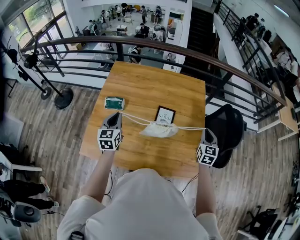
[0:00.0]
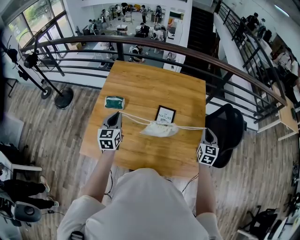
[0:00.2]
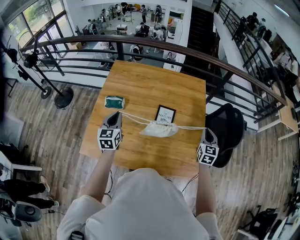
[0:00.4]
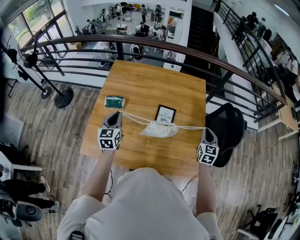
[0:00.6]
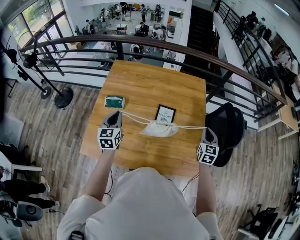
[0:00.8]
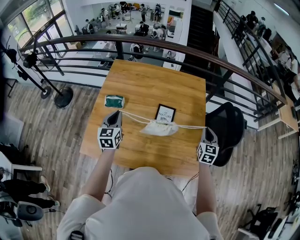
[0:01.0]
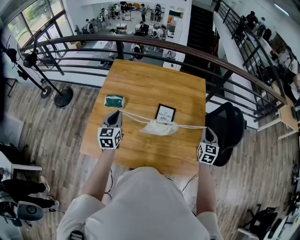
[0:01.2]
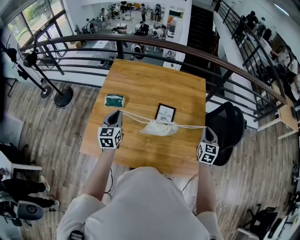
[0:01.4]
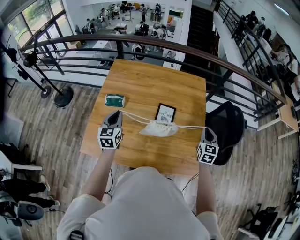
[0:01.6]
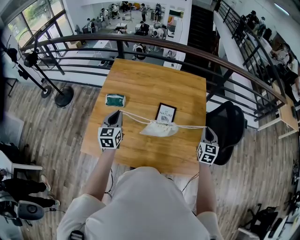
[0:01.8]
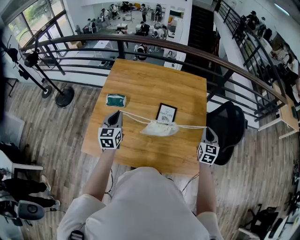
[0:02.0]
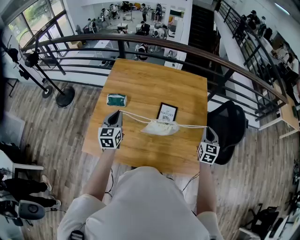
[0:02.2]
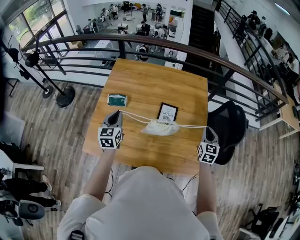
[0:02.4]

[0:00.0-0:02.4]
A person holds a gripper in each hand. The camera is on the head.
0:00.0 to 0:01.2: Both grippers stay put.
0:01.2 to 0:02.4: The grippers stay close to where they were, moving slightly.

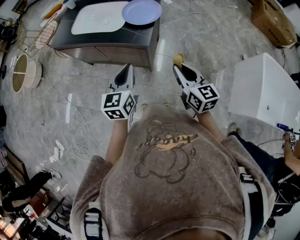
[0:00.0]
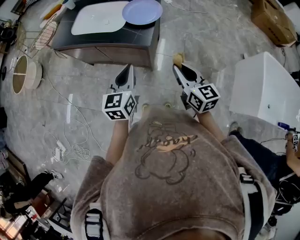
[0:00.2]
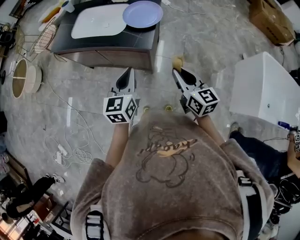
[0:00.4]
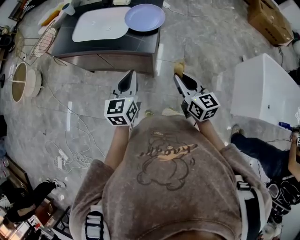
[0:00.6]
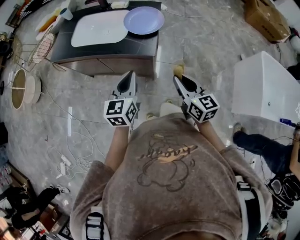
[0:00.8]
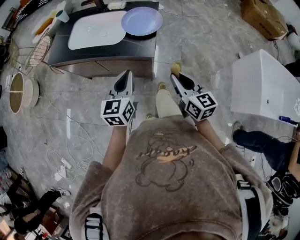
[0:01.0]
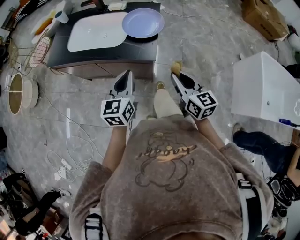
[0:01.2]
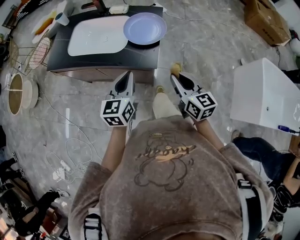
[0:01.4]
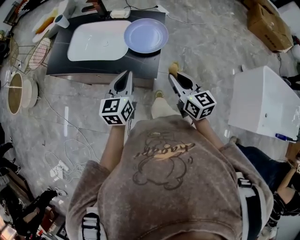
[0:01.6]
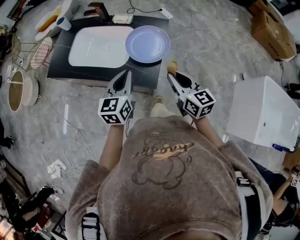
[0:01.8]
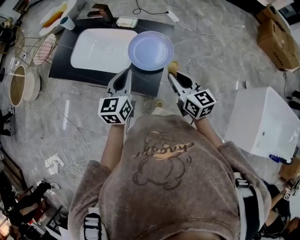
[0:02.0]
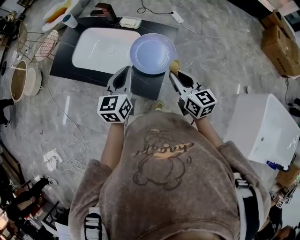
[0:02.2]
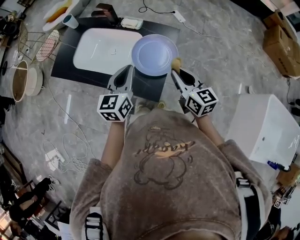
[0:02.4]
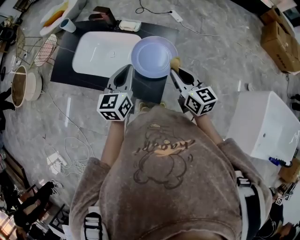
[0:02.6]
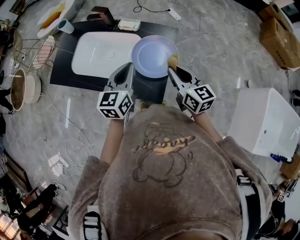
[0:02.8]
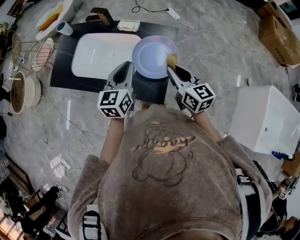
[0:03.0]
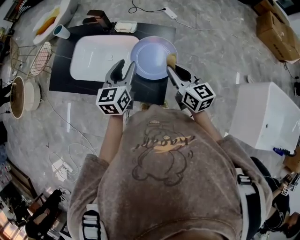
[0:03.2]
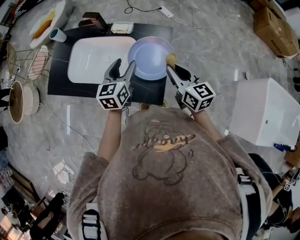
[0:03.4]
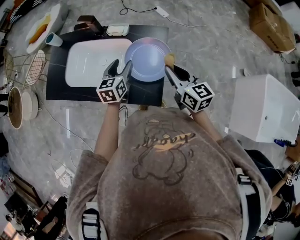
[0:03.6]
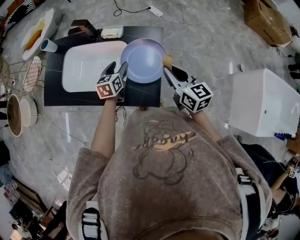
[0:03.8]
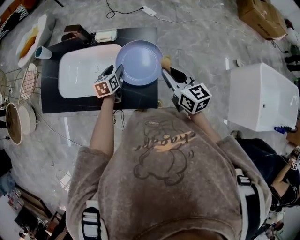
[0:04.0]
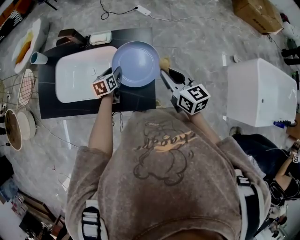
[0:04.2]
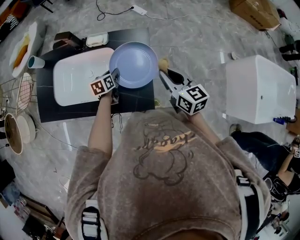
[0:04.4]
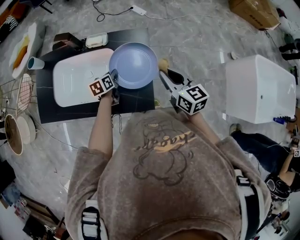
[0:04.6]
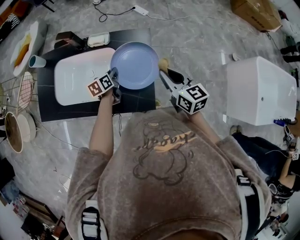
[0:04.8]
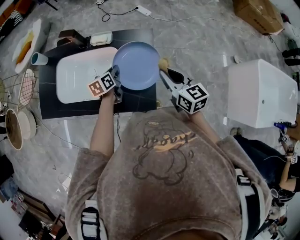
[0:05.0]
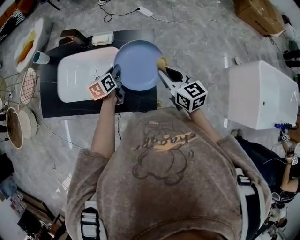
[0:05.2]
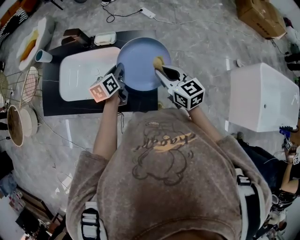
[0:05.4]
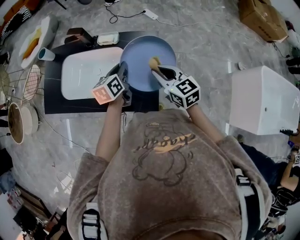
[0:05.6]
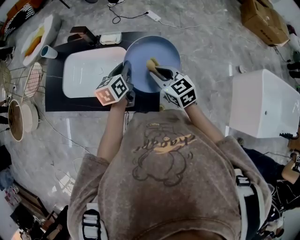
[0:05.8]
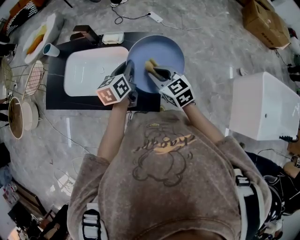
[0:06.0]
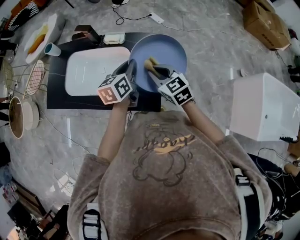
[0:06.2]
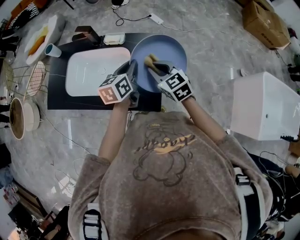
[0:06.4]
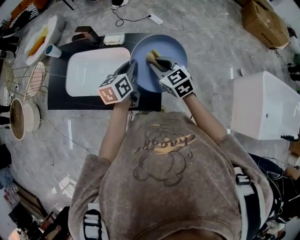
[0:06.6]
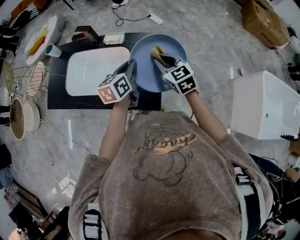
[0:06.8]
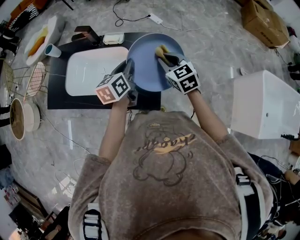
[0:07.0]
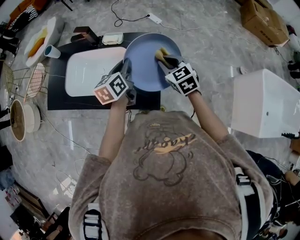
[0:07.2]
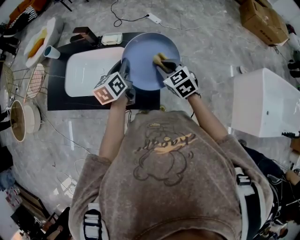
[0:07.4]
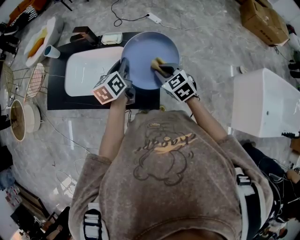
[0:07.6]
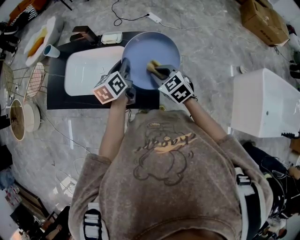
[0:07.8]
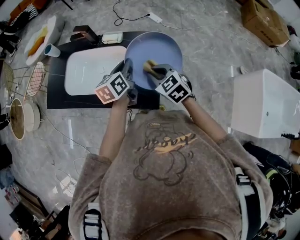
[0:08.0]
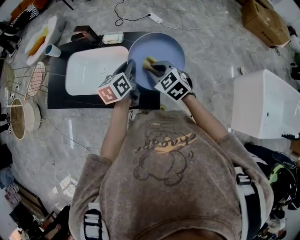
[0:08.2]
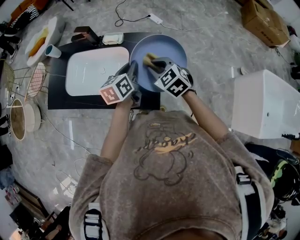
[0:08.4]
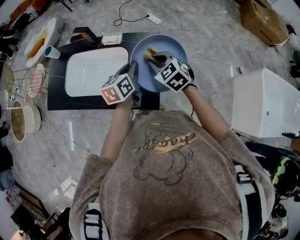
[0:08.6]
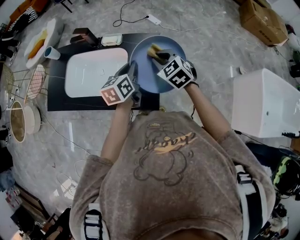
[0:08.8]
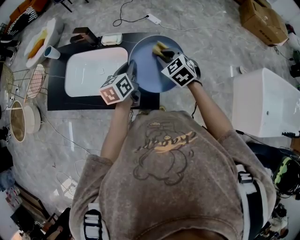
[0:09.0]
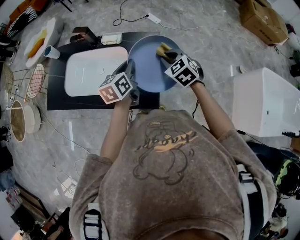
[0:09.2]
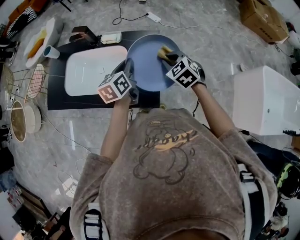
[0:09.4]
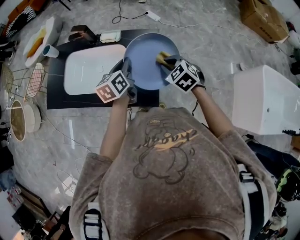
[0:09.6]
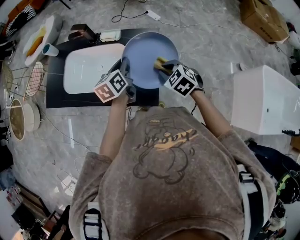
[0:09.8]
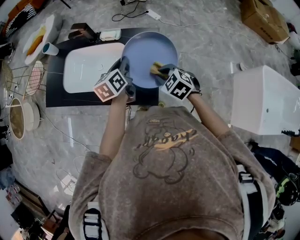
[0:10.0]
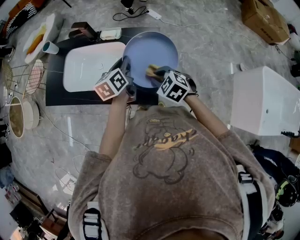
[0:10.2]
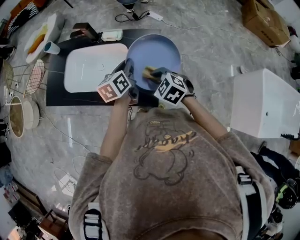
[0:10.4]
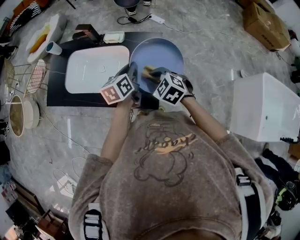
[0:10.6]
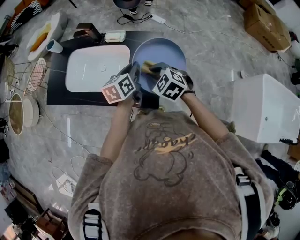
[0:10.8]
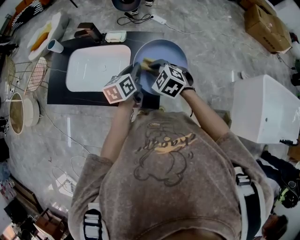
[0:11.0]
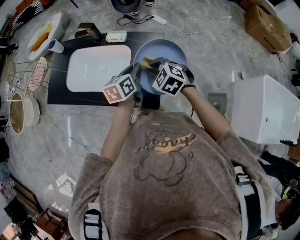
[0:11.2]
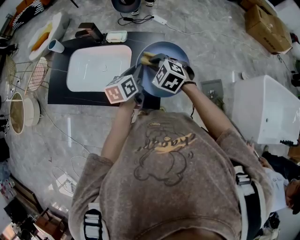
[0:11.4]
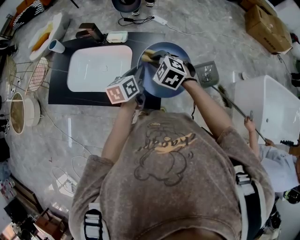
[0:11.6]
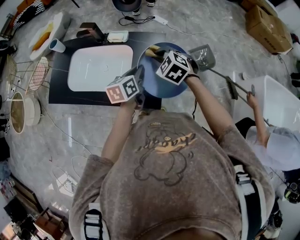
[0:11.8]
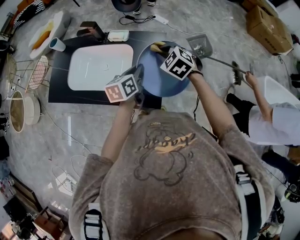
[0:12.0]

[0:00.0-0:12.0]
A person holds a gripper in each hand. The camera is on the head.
0:00.0 to 0:01.6: The grippers both shift forward by approximately 20 cm.
0:01.6 to 0:03.0: Both grippers move forward, approximately 20 cm.
0:03.0 to 0:04.4: The right gripper goes about 5 cm to the right, while the left gripper is displaced downward and forward by about 25 cm, turns by roughly 30 degrees, and opens its fingers.
0:04.4 to 0:06.0: The right gripper goes roughly 10 cm to the left, and changes its angle by some 30 degrees, while the left gripper travels upward by about 20 cm, swivels about 20 degrees, and closes up.
0:07.6 to 0:09.0: The right gripper goes roughly 5 cm forward.
0:09.0 to 0:10.4: The right gripper travels backward, to the left and downward by approximately 15 cm.
0:10.4 to 0:12.0: The right gripper moves forward, about 10 cm.

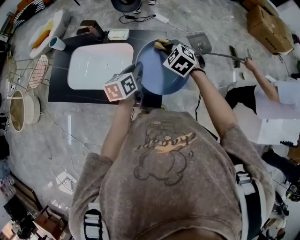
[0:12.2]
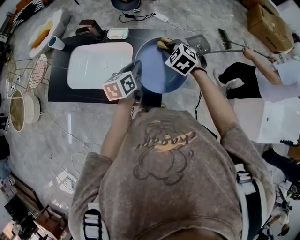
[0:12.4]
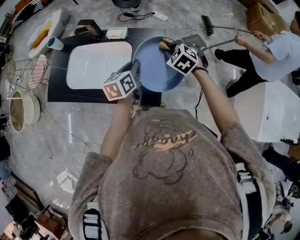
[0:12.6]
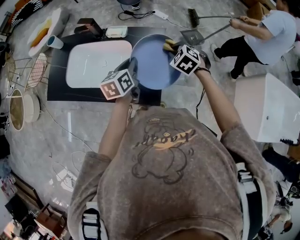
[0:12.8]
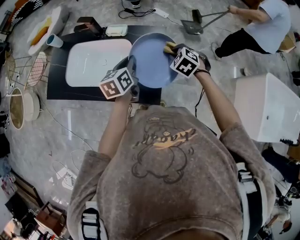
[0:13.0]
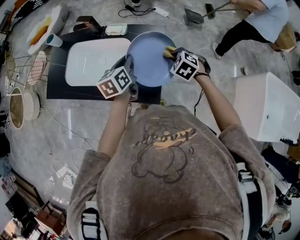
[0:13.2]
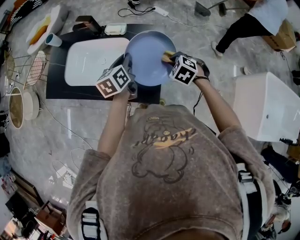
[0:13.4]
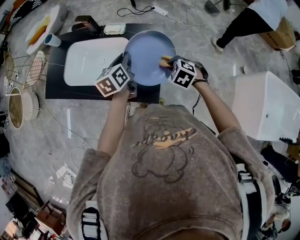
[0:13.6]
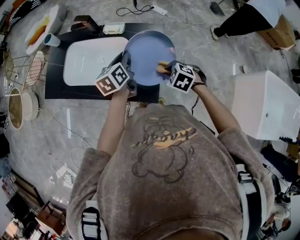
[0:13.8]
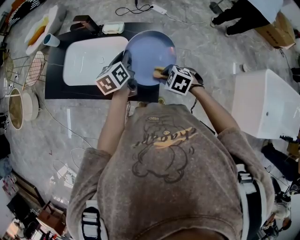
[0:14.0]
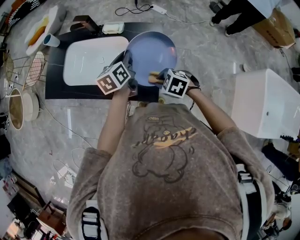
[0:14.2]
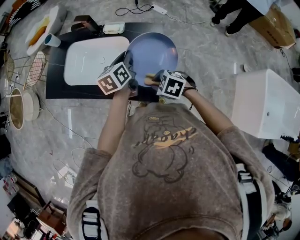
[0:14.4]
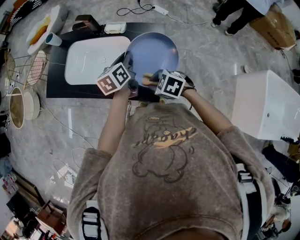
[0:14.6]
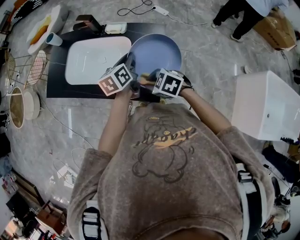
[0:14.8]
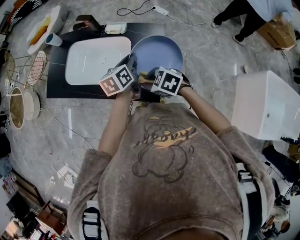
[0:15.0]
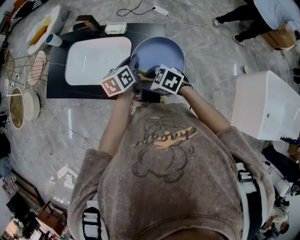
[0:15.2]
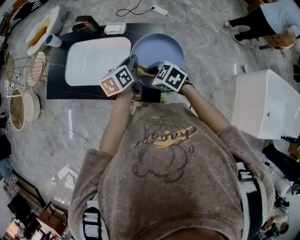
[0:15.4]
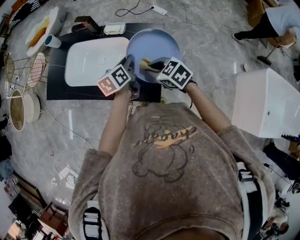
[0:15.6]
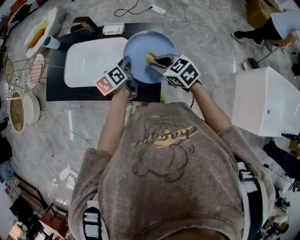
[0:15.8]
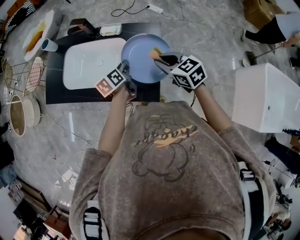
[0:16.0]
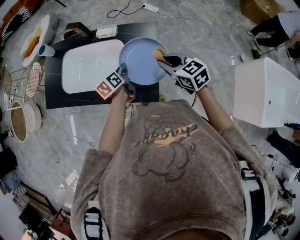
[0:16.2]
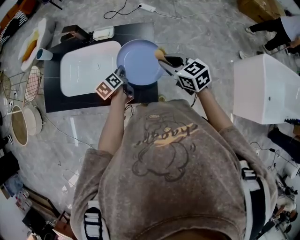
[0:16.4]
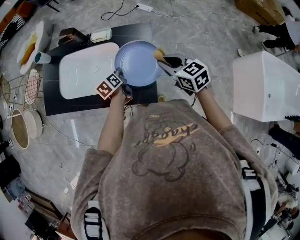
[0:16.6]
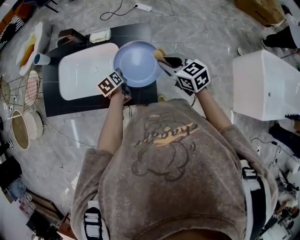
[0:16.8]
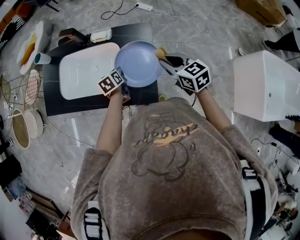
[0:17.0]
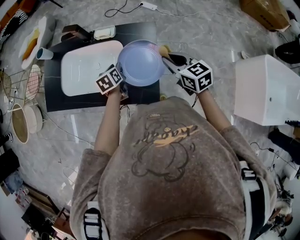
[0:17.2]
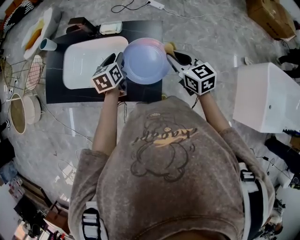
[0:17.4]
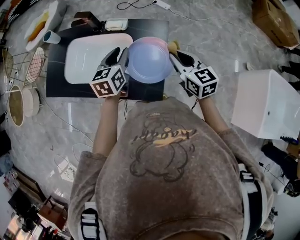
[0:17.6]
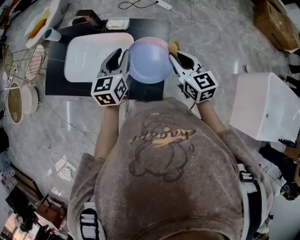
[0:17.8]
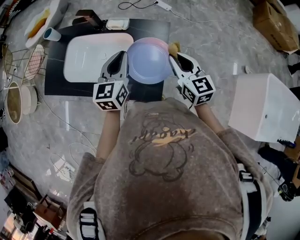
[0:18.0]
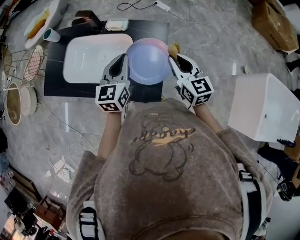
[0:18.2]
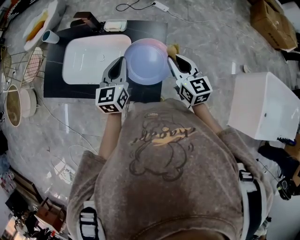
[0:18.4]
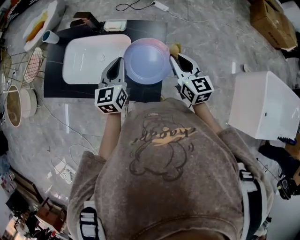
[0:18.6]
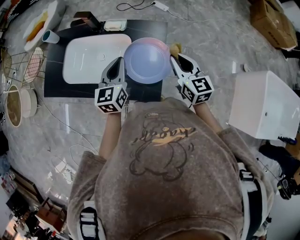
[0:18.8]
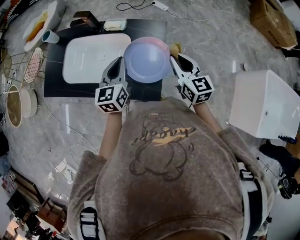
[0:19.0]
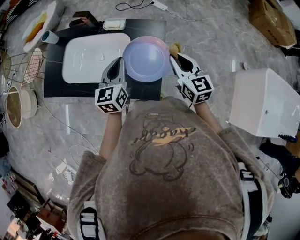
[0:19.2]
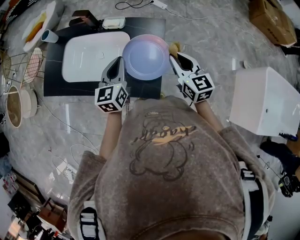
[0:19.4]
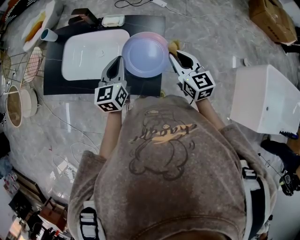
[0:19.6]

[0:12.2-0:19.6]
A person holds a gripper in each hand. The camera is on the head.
0:12.2 to 0:13.6: The right gripper moves backward and downward, about 10 cm.
0:13.6 to 0:15.2: The right gripper travels to the left by roughly 15 cm, and changes its angle by about 30 degrees.
0:15.2 to 0:16.6: The right gripper travels to the right by approximately 15 cm, and changes its angle by approximately 40 degrees. Meanwhile the left gripper goes approximately 10 cm downward.
0:16.6 to 0:18.2: The left gripper moves upward, about 20 cm, changes its angle by about 40 degrees, and opens, then closes again.
0:18.2 to 0:19.6: The grippers stay close to where they were, moving slightly.

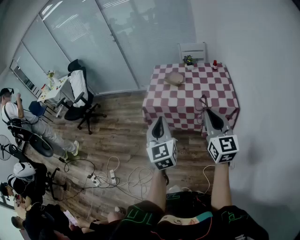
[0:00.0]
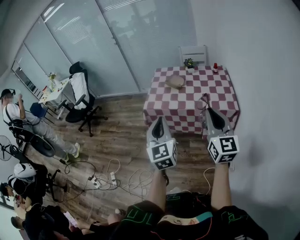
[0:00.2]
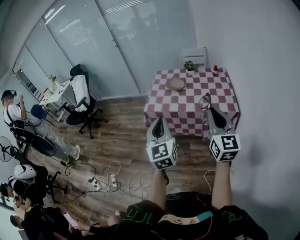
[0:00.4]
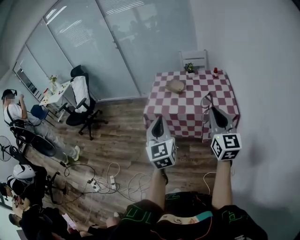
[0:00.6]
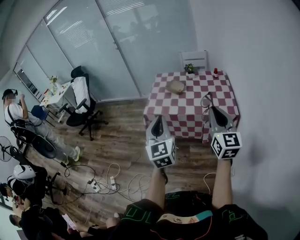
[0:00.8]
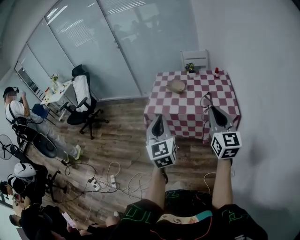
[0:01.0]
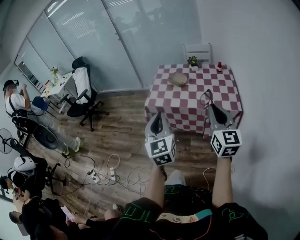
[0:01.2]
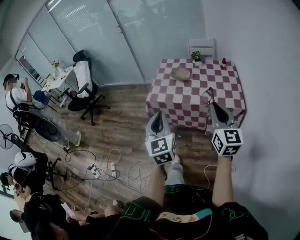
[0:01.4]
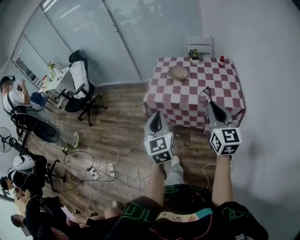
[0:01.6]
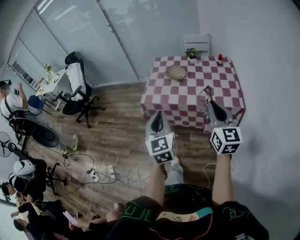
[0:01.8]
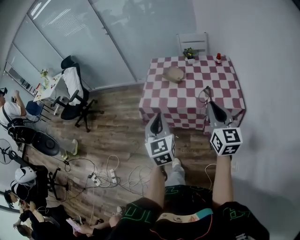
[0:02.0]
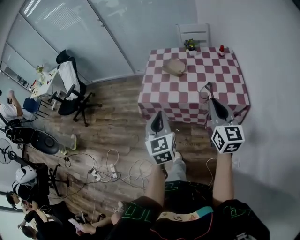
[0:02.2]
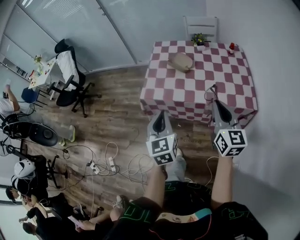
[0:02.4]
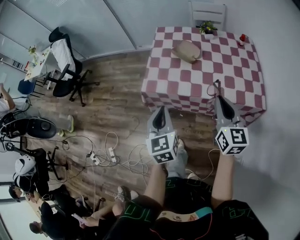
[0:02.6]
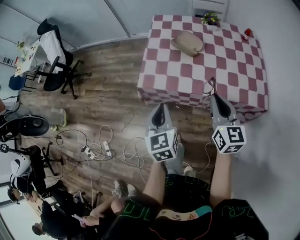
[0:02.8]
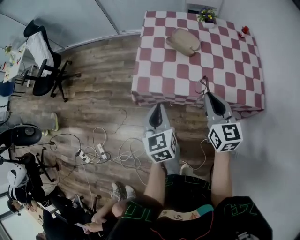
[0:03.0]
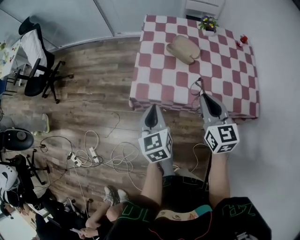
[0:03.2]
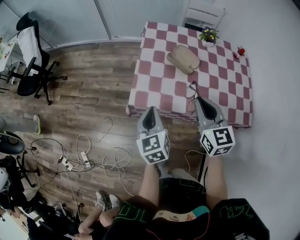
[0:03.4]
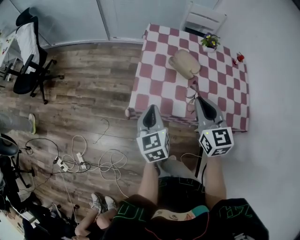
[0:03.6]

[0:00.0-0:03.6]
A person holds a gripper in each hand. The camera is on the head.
0:00.0 to 0:01.8: The grippers both shift forward by some 10 cm.
0:01.8 to 0:03.6: The left gripper heads forward and downward, covering about 35 cm, and changes its angle by some 30 degrees; the right gripper moves forward and to the left, roughly 35 cm, and rotates approximately 20 degrees.
